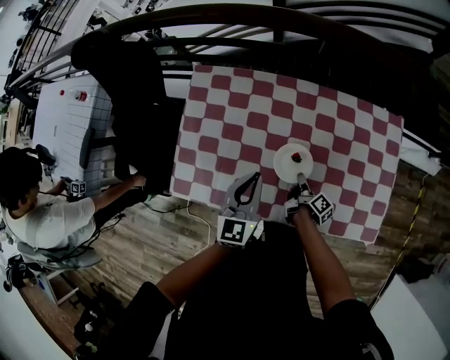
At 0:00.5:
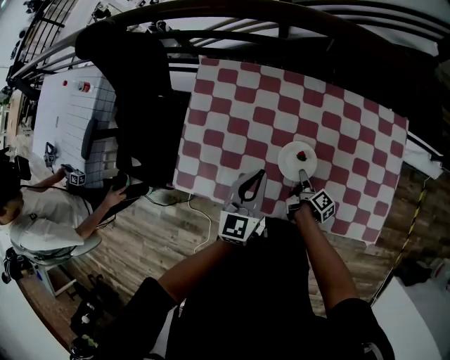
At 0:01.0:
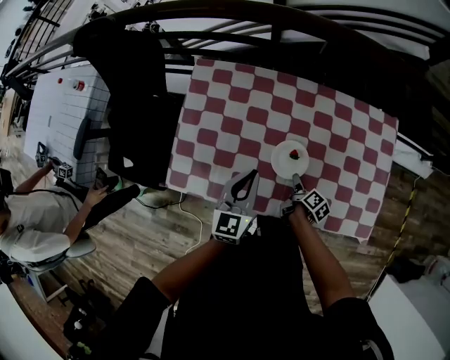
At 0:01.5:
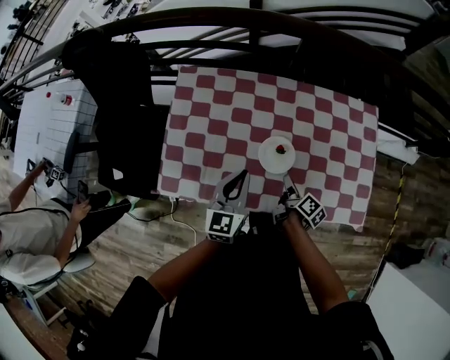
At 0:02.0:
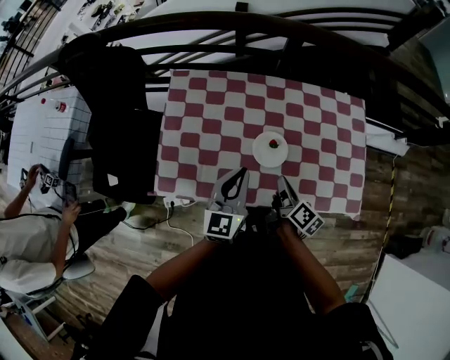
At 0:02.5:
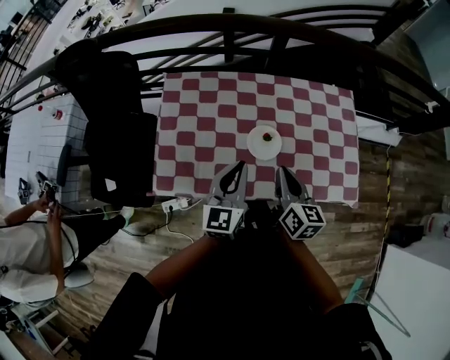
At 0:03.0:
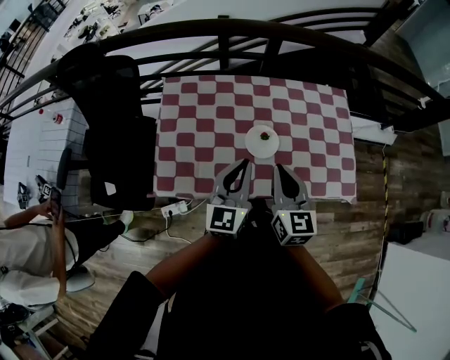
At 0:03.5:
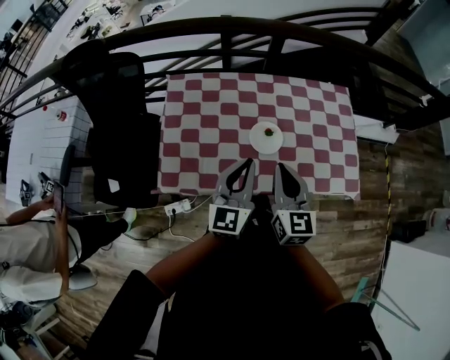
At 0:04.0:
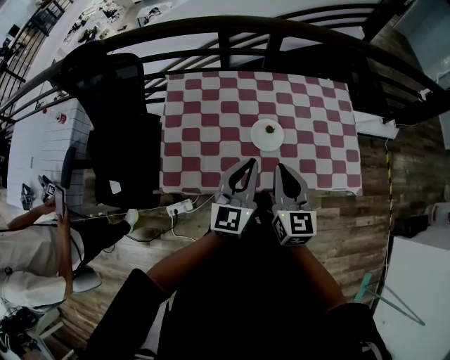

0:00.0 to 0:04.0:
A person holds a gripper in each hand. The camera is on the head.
0:00.0 to 0:02.0: The left gripper changes place by approximately 10 cm.
0:02.0 to 0:04.0: The left gripper changes place by approximately 10 cm.

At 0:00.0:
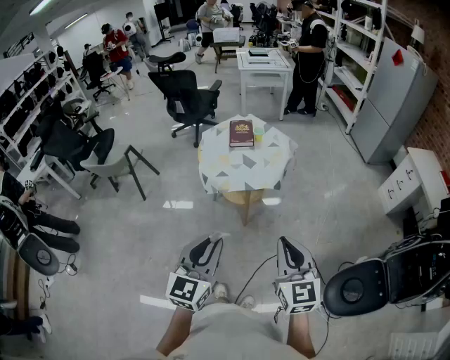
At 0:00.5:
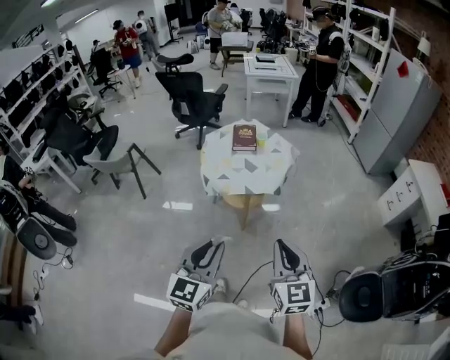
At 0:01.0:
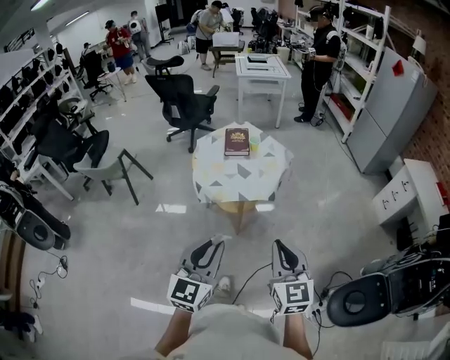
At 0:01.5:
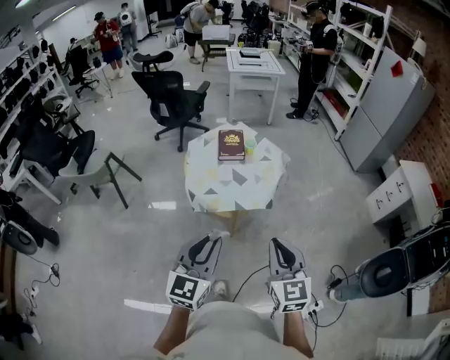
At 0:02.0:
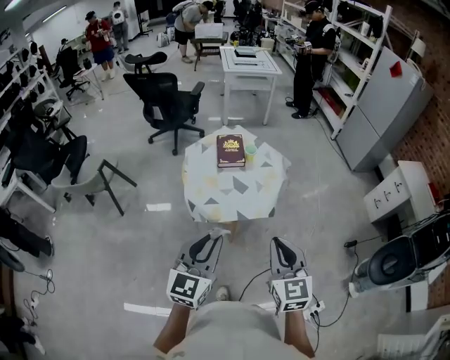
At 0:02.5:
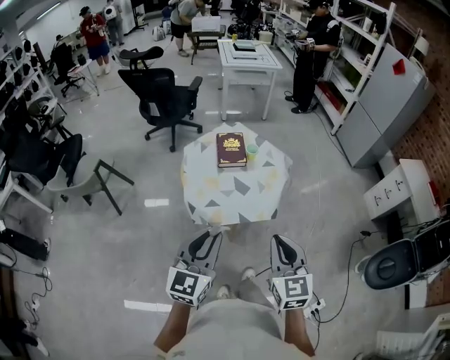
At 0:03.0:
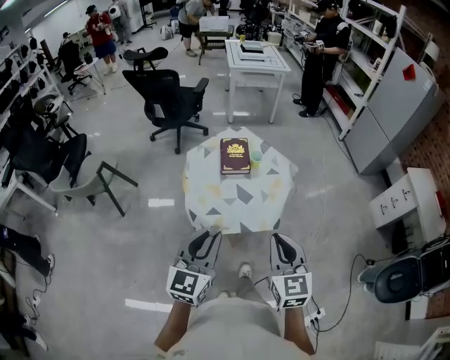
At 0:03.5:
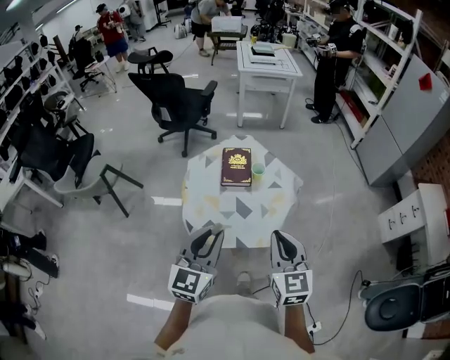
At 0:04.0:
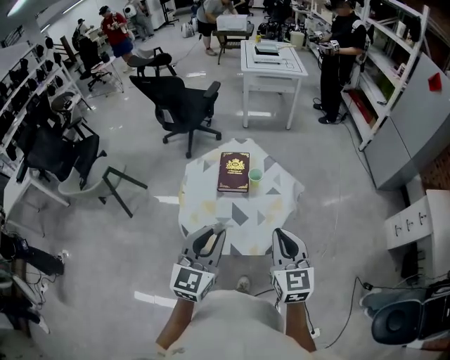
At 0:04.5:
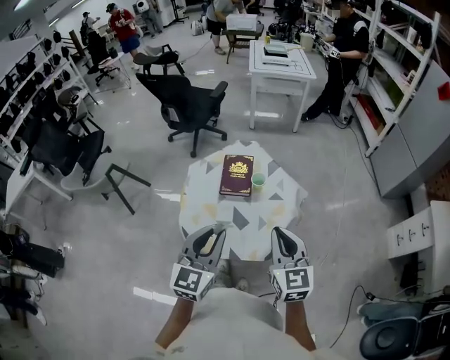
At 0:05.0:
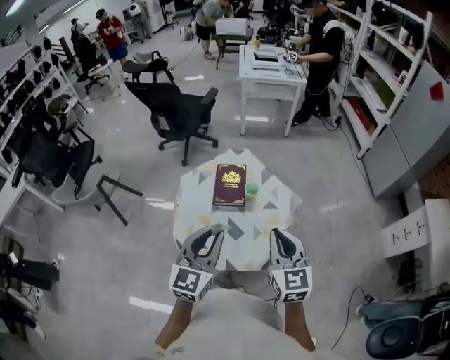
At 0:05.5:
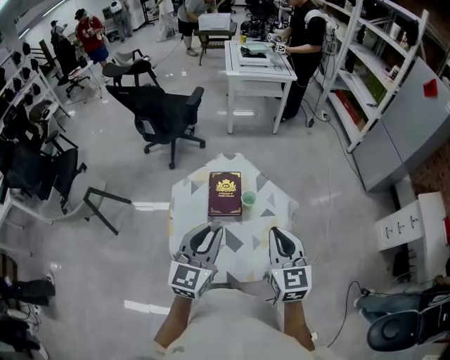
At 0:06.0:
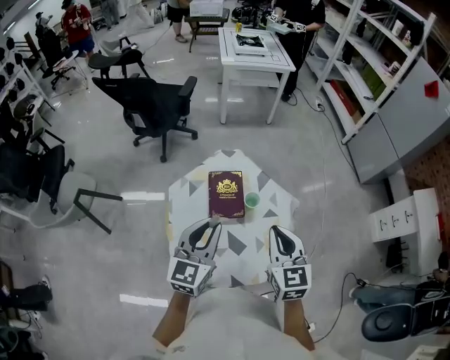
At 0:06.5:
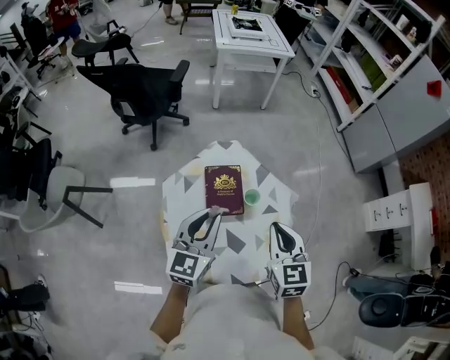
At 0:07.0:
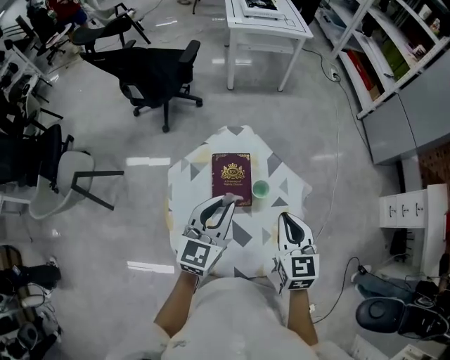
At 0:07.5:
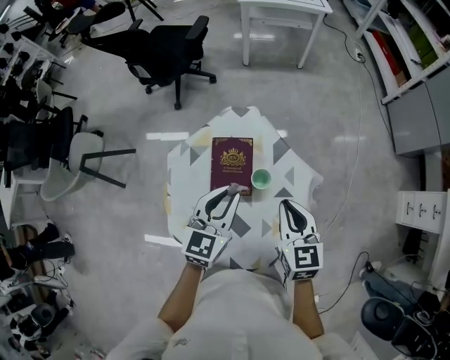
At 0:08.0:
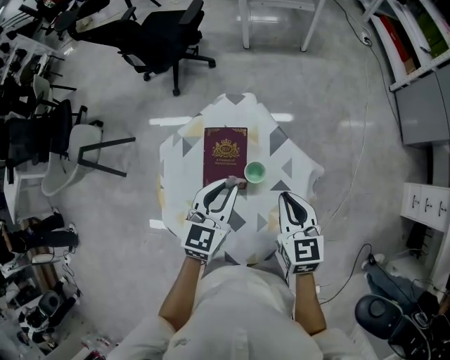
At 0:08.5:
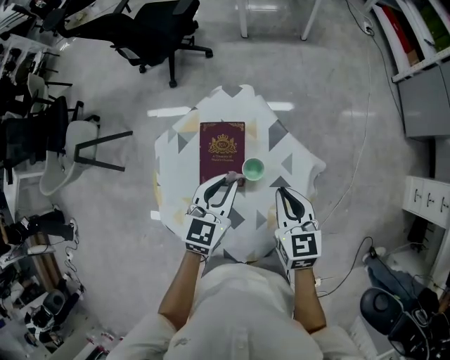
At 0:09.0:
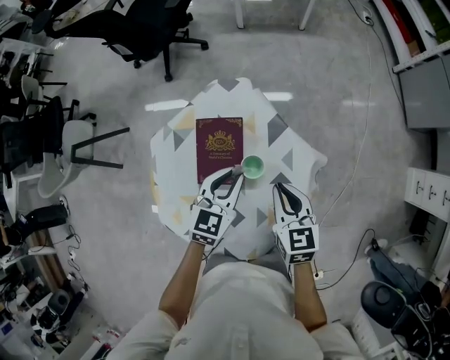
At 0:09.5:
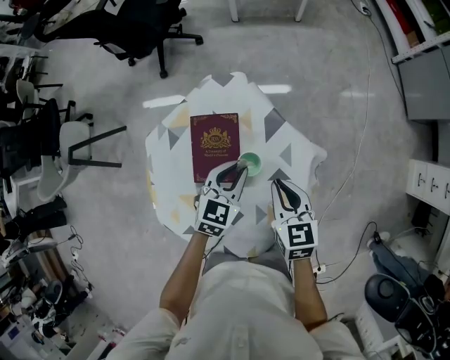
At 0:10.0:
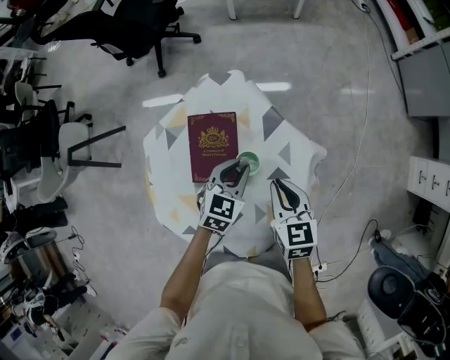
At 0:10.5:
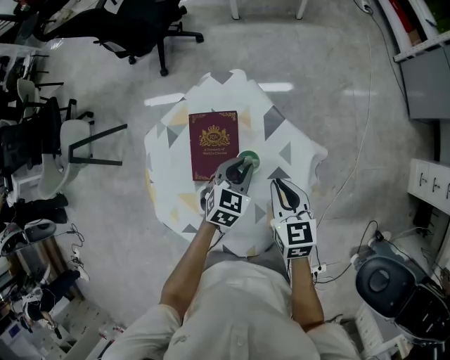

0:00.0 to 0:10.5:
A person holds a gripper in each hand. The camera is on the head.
0:00.0 to 0:02.0: Both grippers travel together forward, about 20 cm.
0:02.0 to 0:04.0: Both grippers move forward, about 25 cm.
0:04.0 to 0:06.5: The grippers both shift forward by about 25 cm.
0:06.5 to 0:08.5: The left gripper goes about 20 cm downward, to the right and forward. Meanwhile the right gripper travels downward, forward and to the right by about 20 cm.
0:08.5 to 0:10.5: The right gripper is displaced downward by some 5 cm, while the left gripper moves downward and to the right, approximately 15 cm, and swivels about 20 degrees.

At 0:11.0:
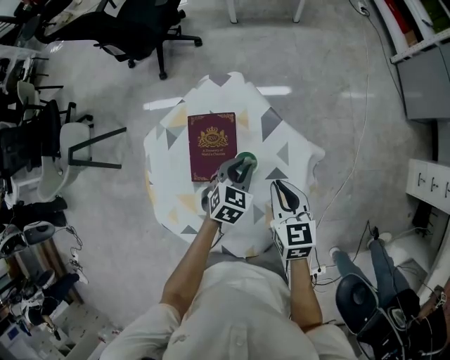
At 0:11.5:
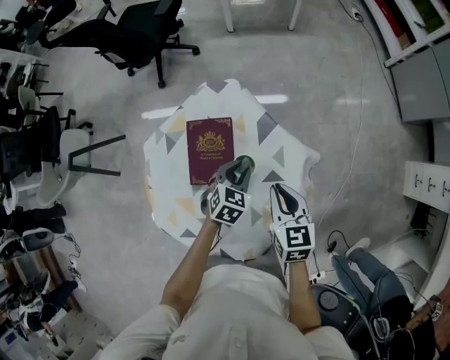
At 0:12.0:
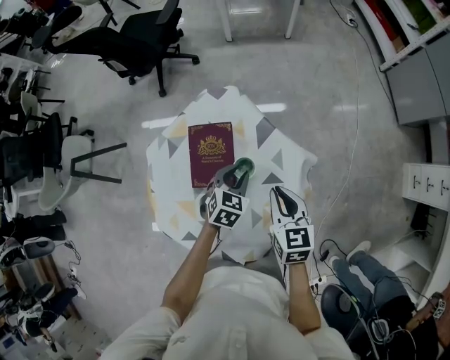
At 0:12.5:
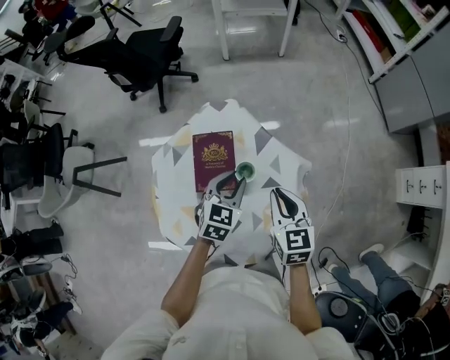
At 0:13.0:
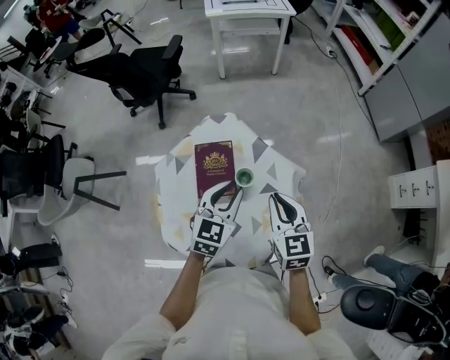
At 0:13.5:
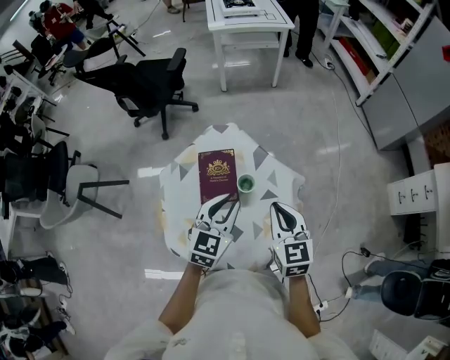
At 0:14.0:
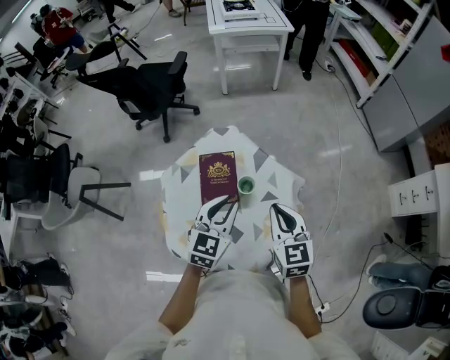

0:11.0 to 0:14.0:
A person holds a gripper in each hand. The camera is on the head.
0:11.0 to 0:12.5: The right gripper is displaced upward by approximately 5 cm, while the left gripper moves upward, some 10 cm.
0:12.5 to 0:14.0: The left gripper heads upward and backward, covering some 10 cm. The right gripper travels upward by approximately 5 cm.

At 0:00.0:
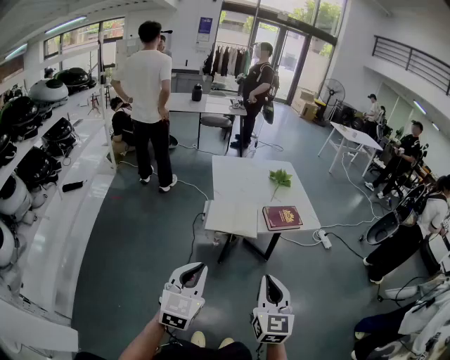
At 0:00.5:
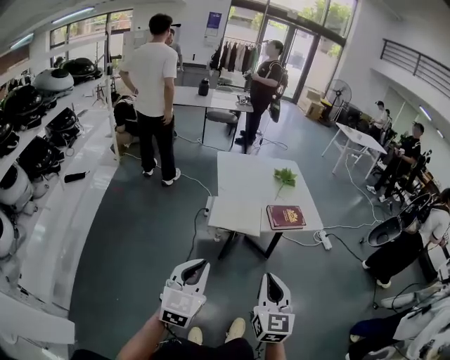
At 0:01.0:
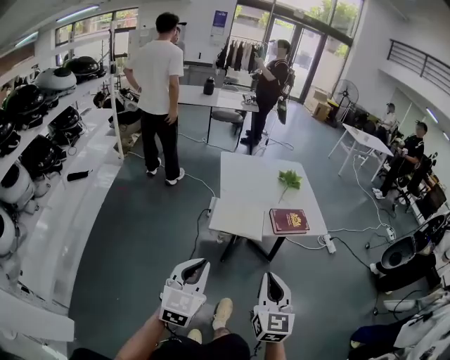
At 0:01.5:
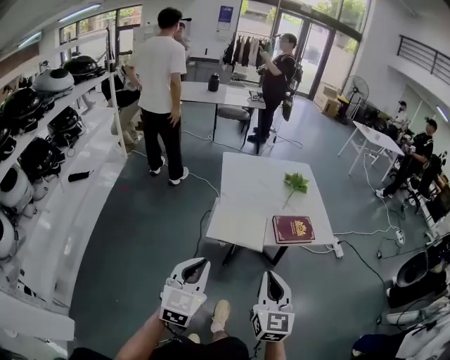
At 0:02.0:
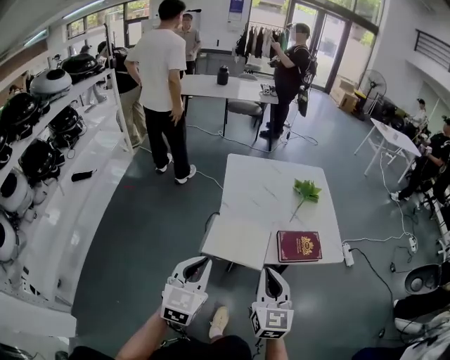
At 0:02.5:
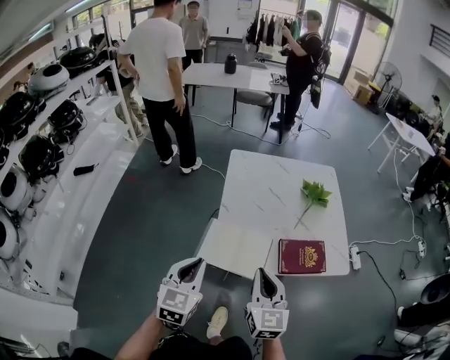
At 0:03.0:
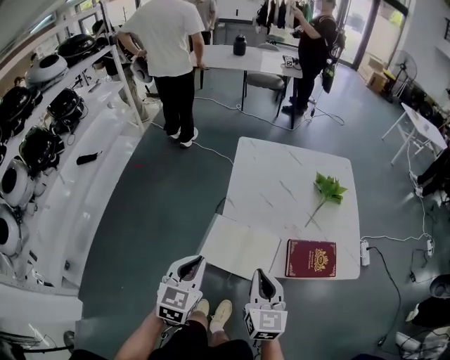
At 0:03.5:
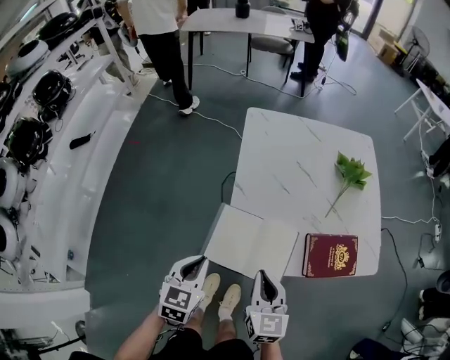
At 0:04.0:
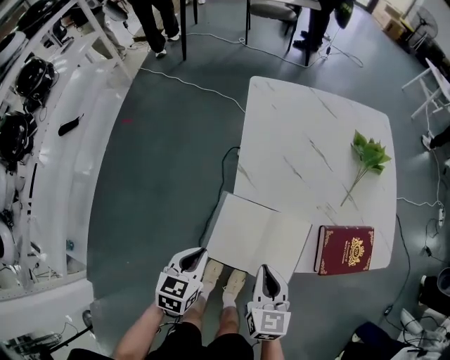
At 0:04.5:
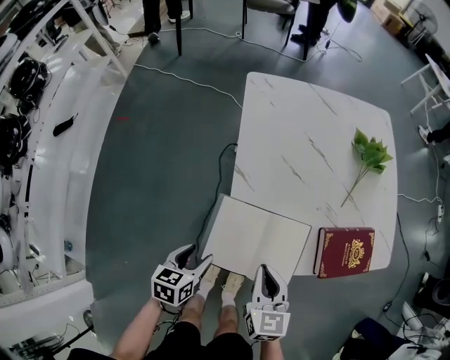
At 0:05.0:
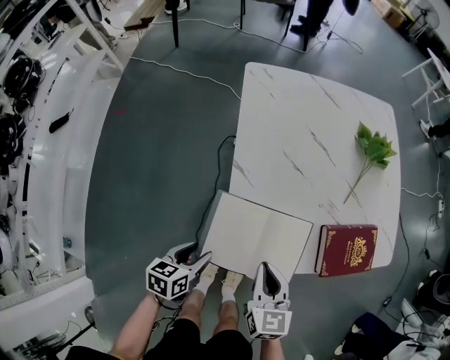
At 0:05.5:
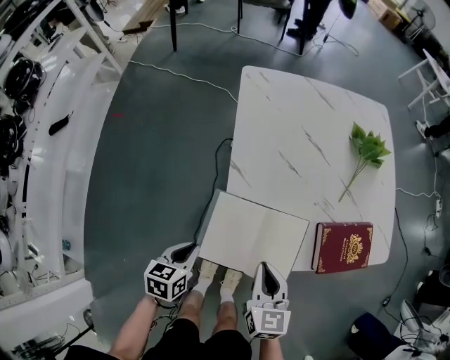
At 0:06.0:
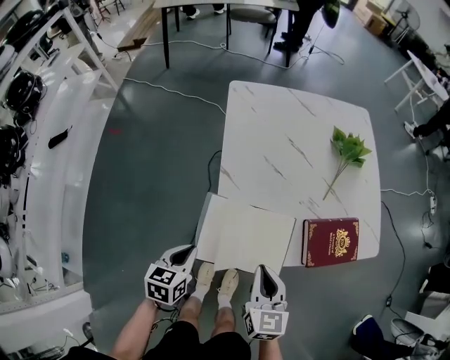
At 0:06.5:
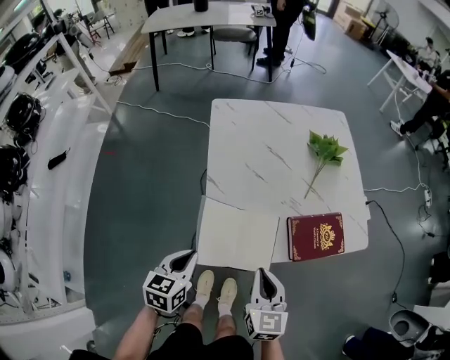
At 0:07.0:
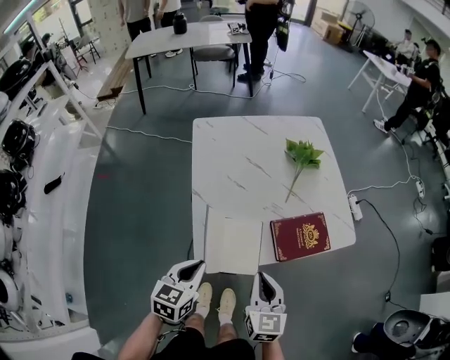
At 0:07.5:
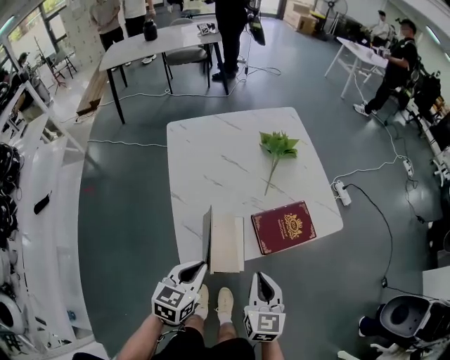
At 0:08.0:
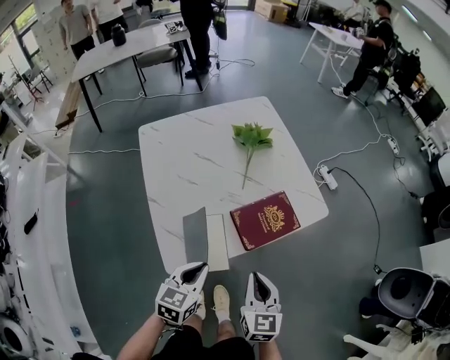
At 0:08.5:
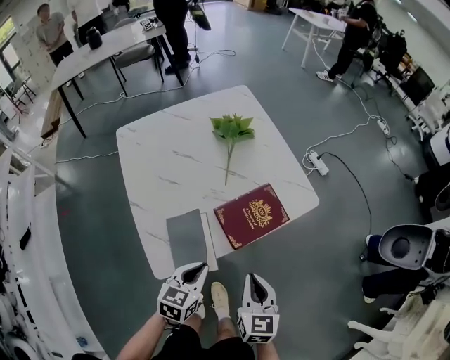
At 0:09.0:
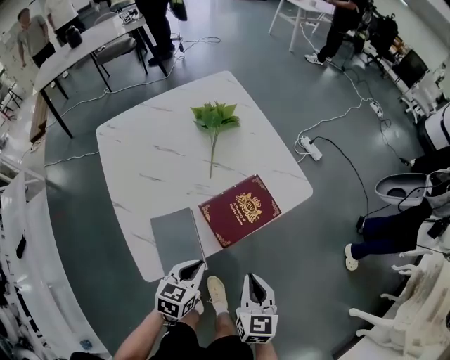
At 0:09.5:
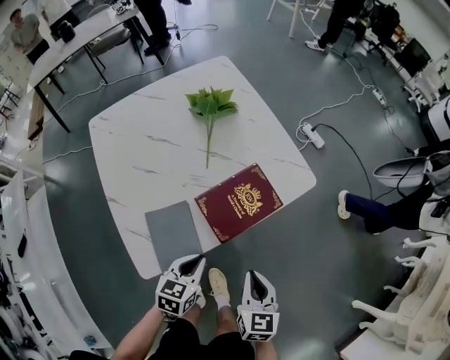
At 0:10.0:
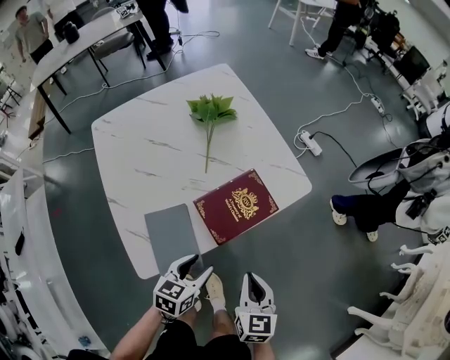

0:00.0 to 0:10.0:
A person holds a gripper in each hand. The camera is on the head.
0:00.0 to 0:02.0: The two grippers go some 30 cm forward.
0:02.0 to 0:04.0: Both grippers travel together downward and forward, roughly 35 cm. The right gripper swivels some 30 degrees. Meanwhile the left gripper changes its angle by roughly 30 degrees.
0:04.0 to 0:06.0: The left gripper opens and closes again.
0:06.0 to 0:08.0: The right gripper shifts approximately 20 cm to the right, and swivels about 20 degrees; the left gripper shifts roughly 25 cm to the right and upward, and swivels about 30 degrees.
0:08.0 to 0:10.0: The left gripper goes roughly 15 cm downward and to the right, and opens its fingers. Meanwhile the right gripper is displaced to the right and downward by some 10 cm.
